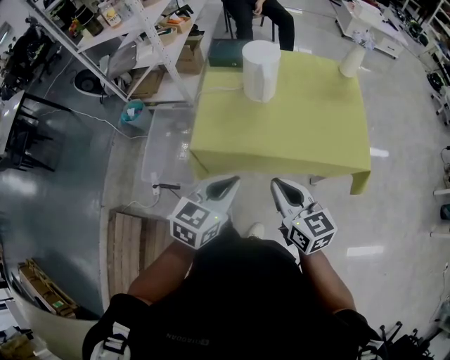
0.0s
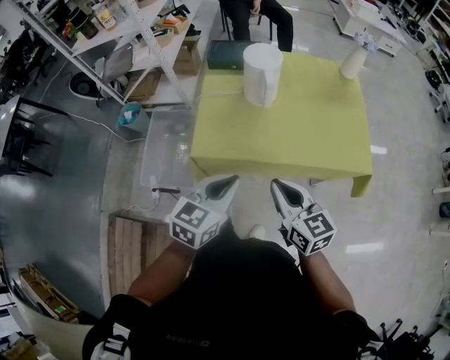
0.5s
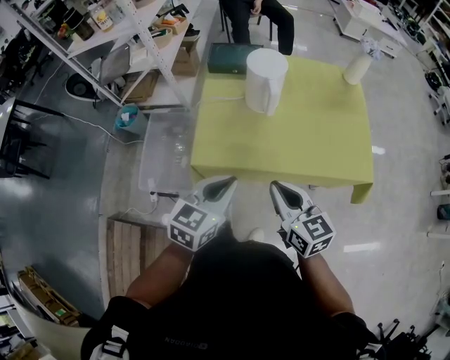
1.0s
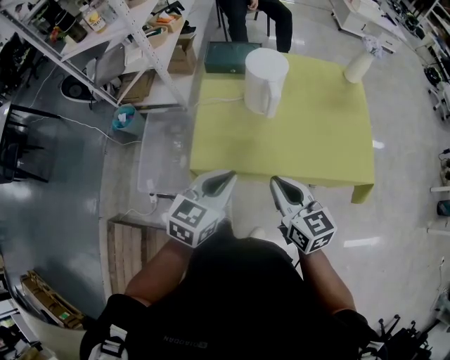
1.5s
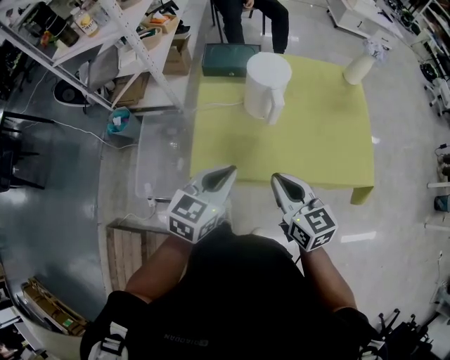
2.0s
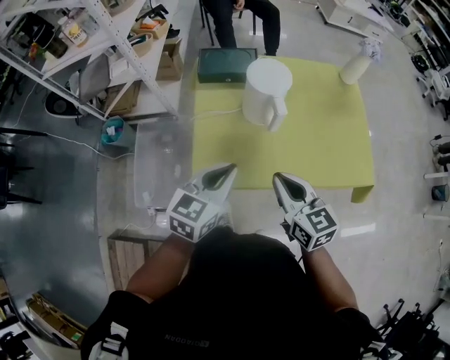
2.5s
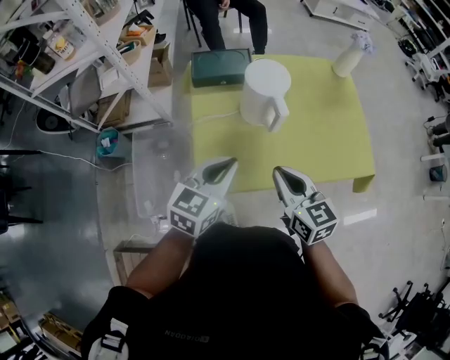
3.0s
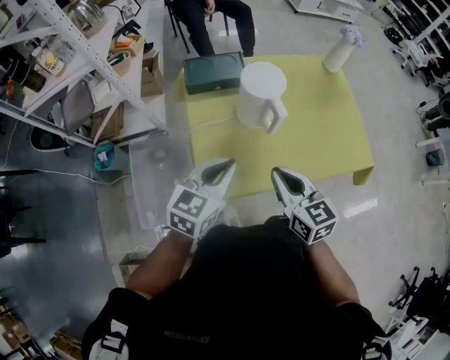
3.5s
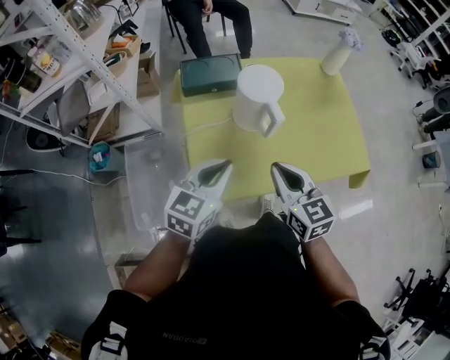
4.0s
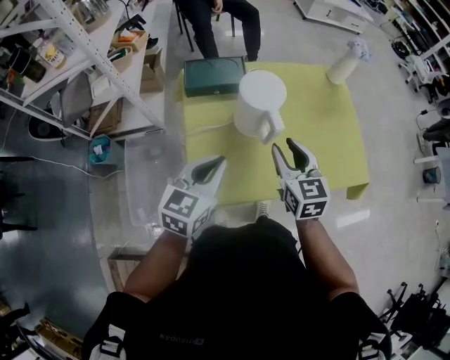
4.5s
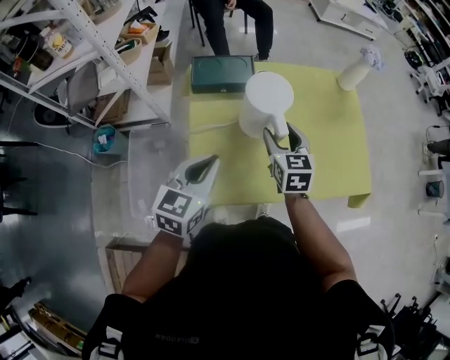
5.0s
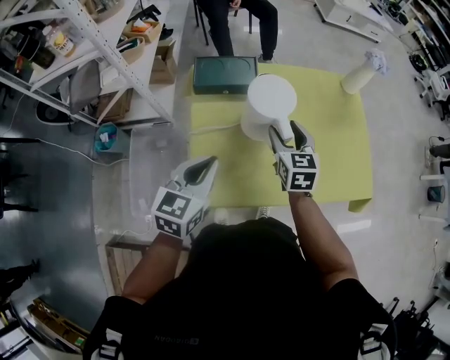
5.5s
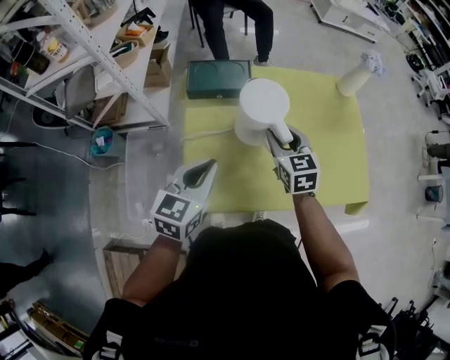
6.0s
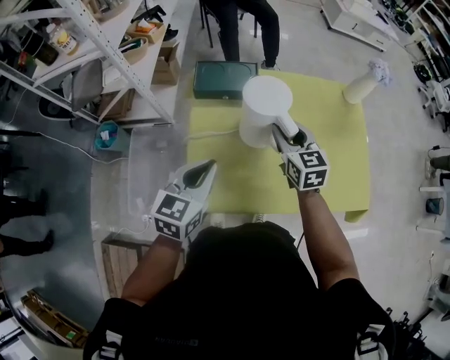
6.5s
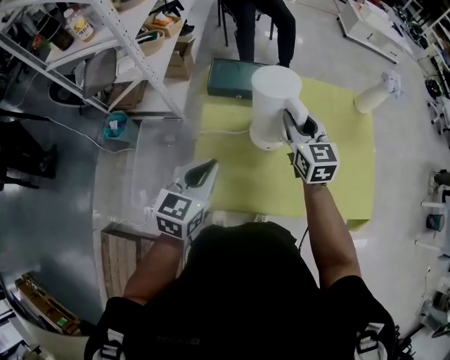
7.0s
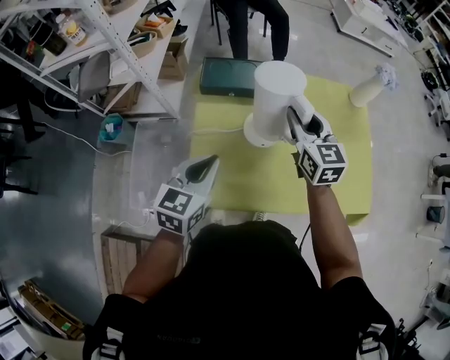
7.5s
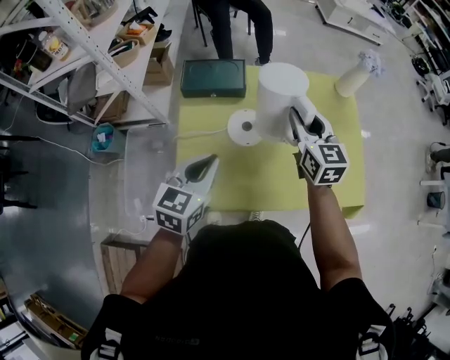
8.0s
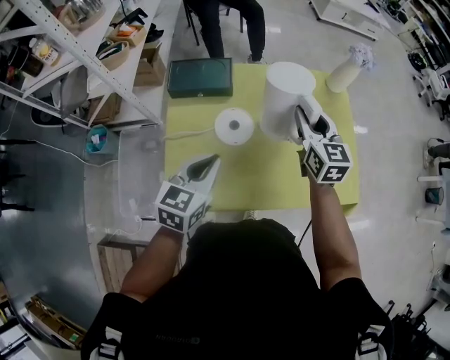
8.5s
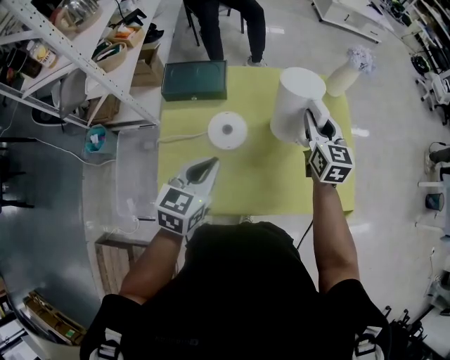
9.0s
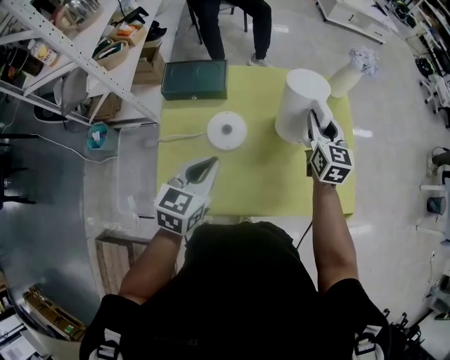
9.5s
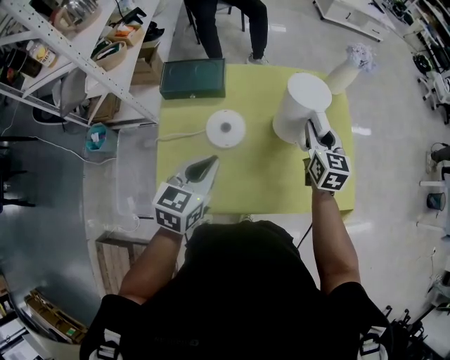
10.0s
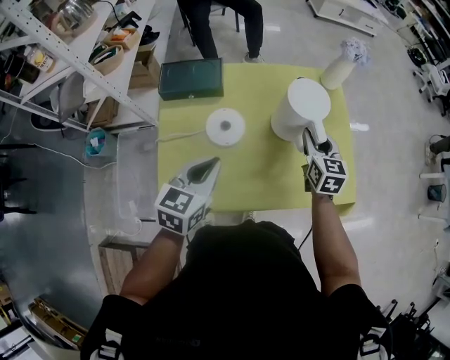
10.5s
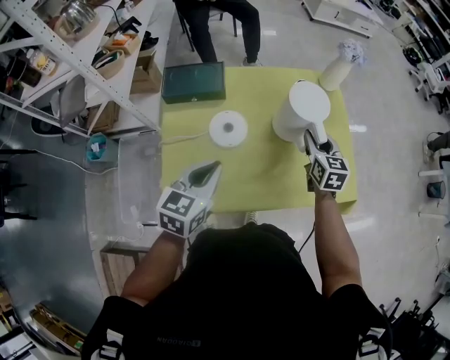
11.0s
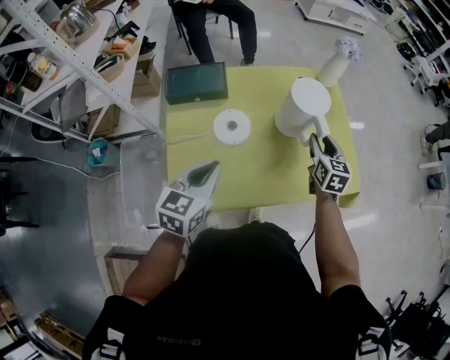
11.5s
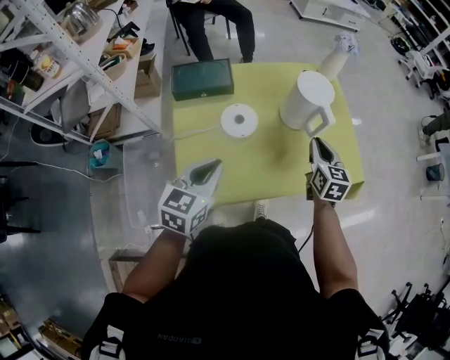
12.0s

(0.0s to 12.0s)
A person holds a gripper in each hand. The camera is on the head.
0.0s - 2.0s: Both grippers travel together forward, some 15 cm.
2.0s - 4.0s: The two grippers go roughly 10 cm forward and to the left.
4.0s - 6.0s: The left gripper shifts roughly 5 cm forward; the right gripper heads forward, covering some 20 cm, and opens up.
6.0s - 8.0s: The right gripper is displaced to the right and upward by roughly 10 cm.
8.0s - 10.0s: The right gripper moves to the right and downward, approximately 15 cm. The left gripper moves to the right, roughly 10 cm.
10.0s - 12.0s: The right gripper shifts approximately 15 cm backward, and closes up. Meanwhile the left gripper goes approximately 10 cm backward.

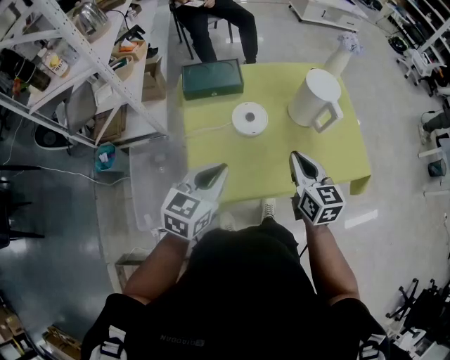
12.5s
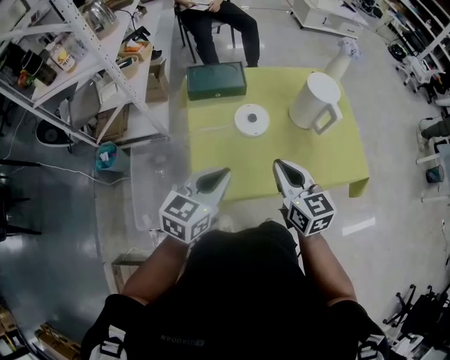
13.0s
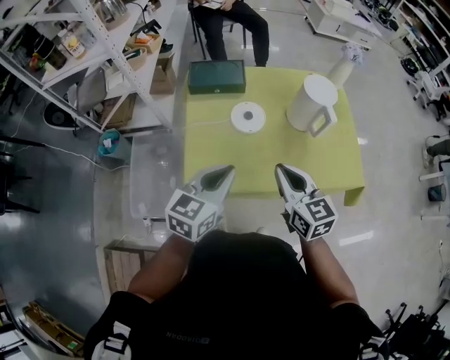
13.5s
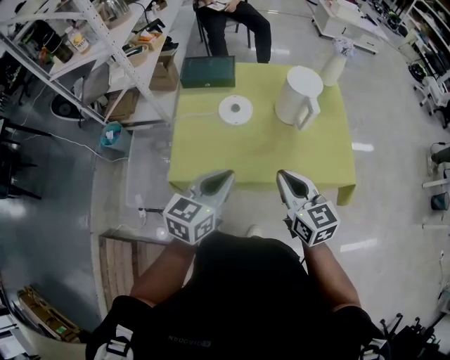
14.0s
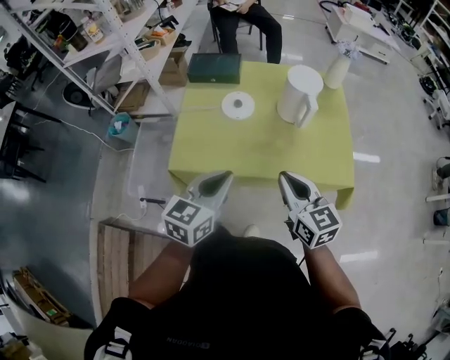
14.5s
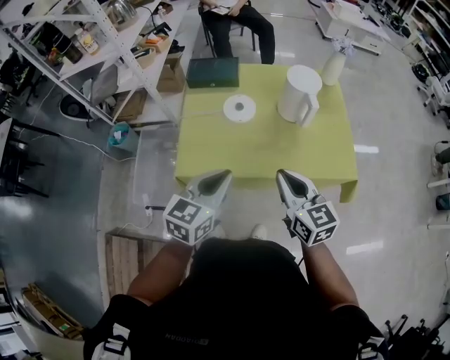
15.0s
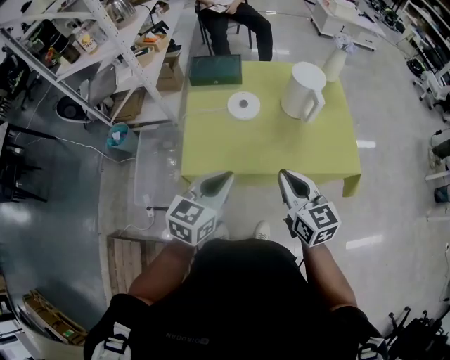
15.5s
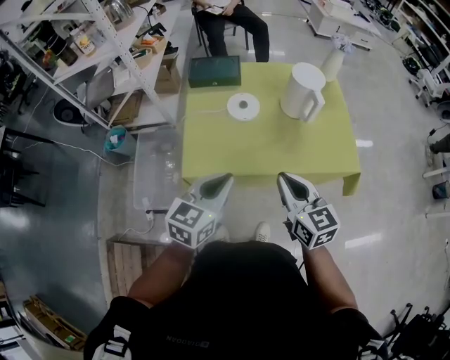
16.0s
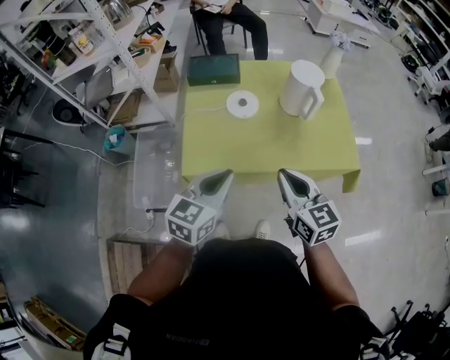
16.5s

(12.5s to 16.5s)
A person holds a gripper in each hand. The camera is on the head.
12.5s - 14.5s: The right gripper is displaced backward and to the right by some 15 cm, and rotates roughly 20 degrees. The left gripper moves to the right and backward, some 20 cm.
14.5s - 16.5s: Both grippers travel together to the left, approximately 10 cm.

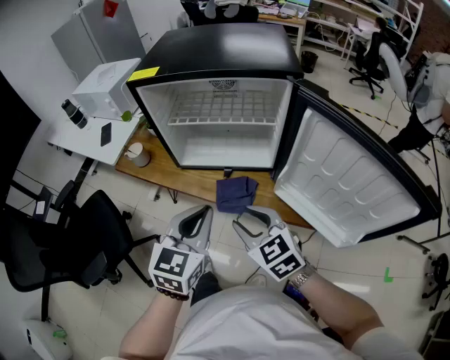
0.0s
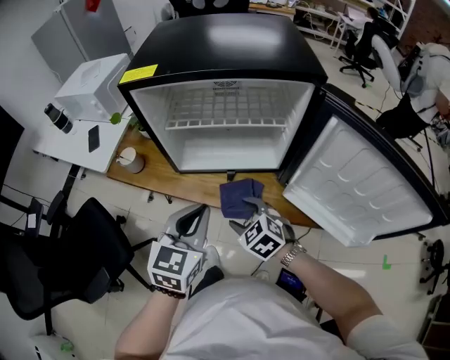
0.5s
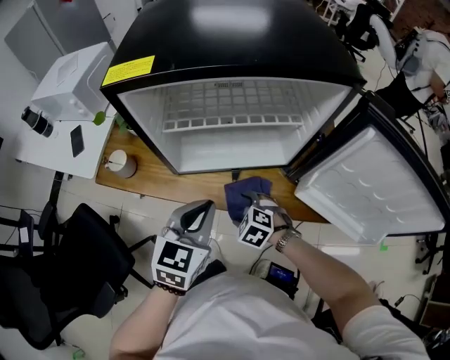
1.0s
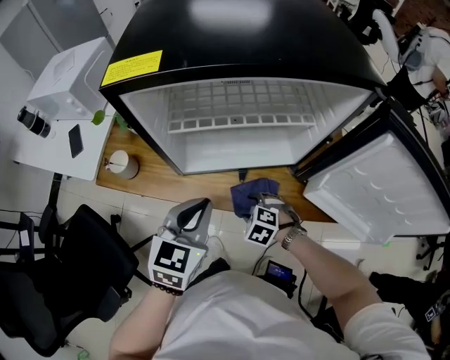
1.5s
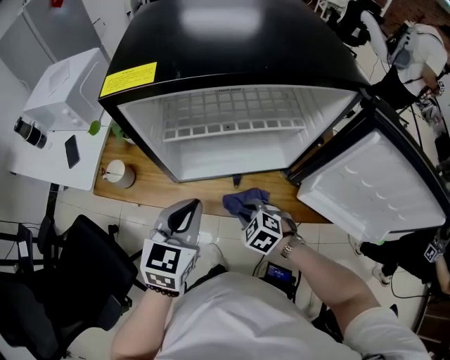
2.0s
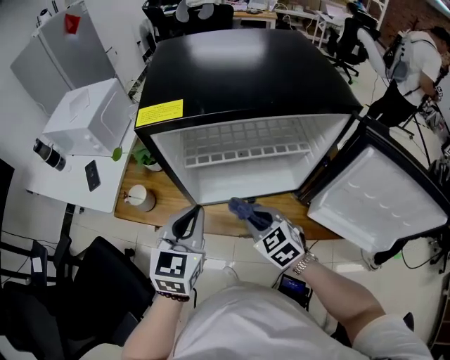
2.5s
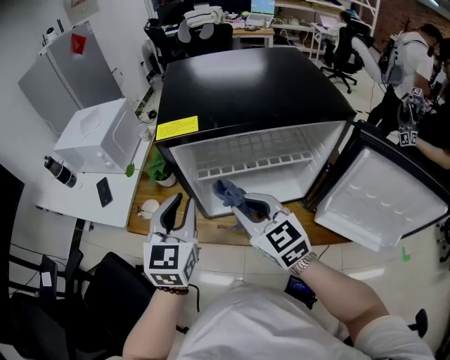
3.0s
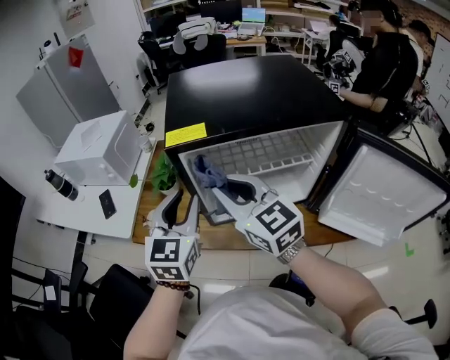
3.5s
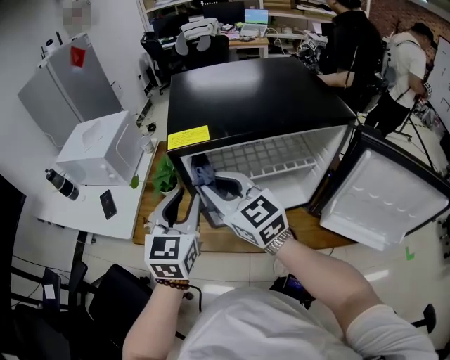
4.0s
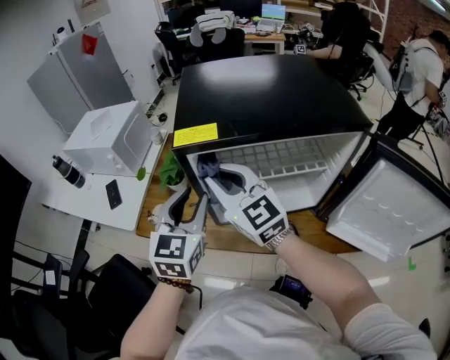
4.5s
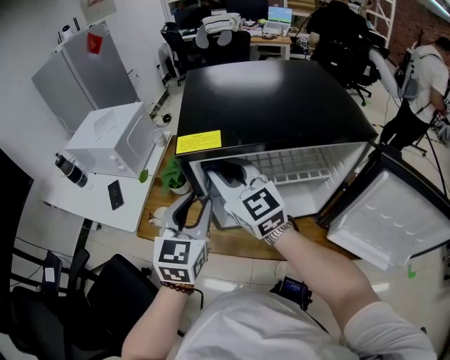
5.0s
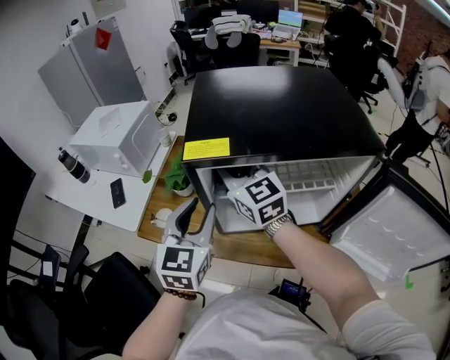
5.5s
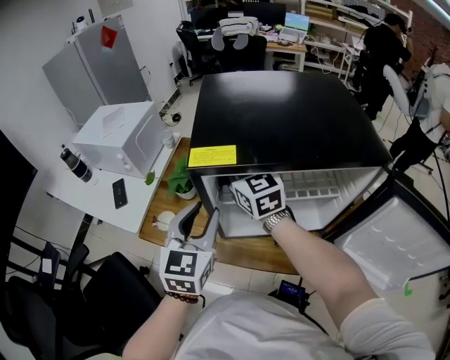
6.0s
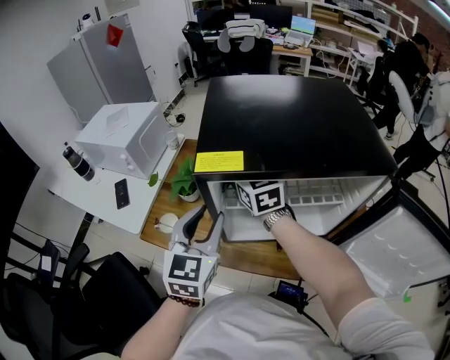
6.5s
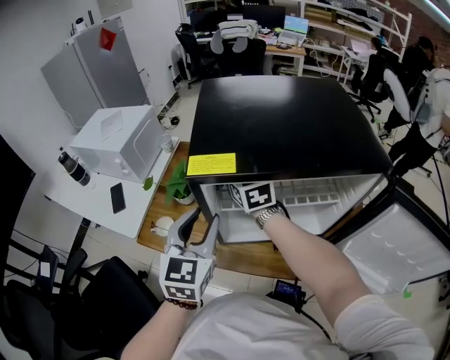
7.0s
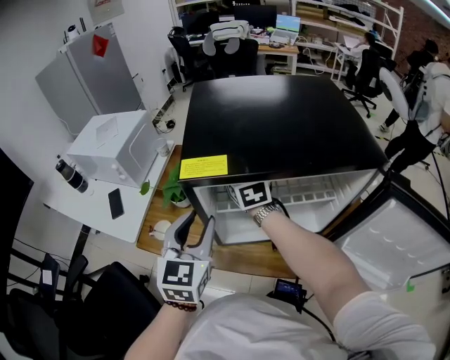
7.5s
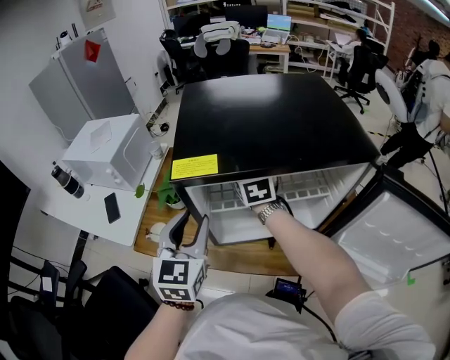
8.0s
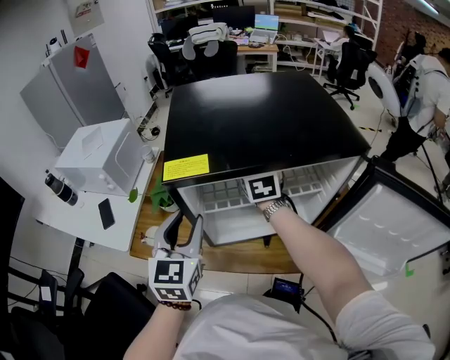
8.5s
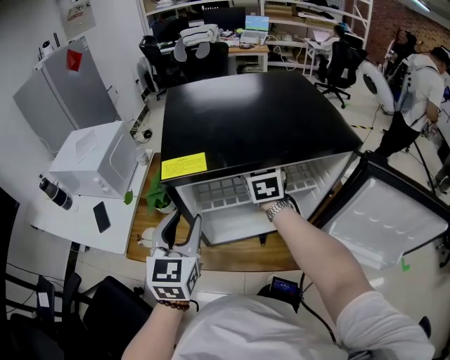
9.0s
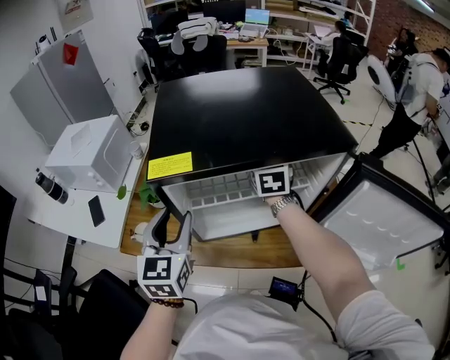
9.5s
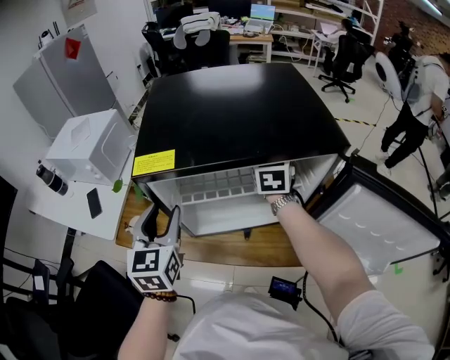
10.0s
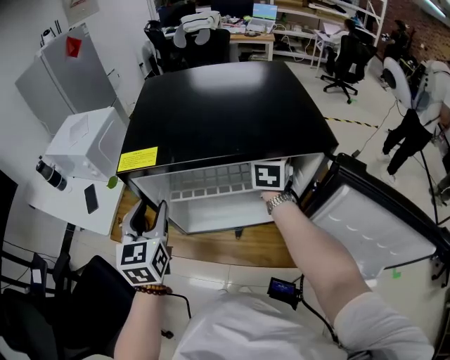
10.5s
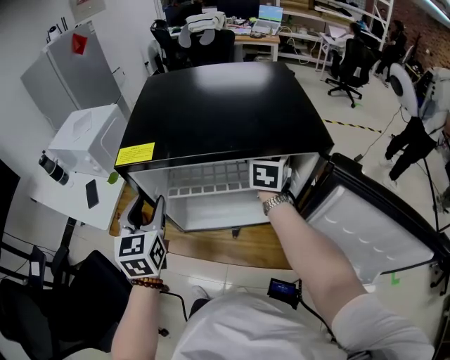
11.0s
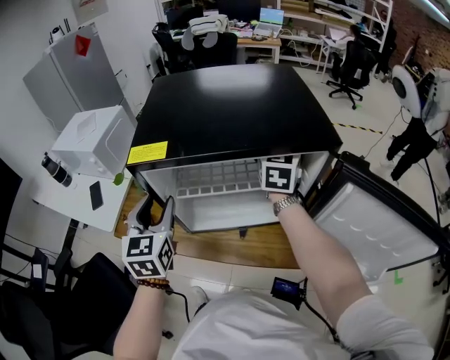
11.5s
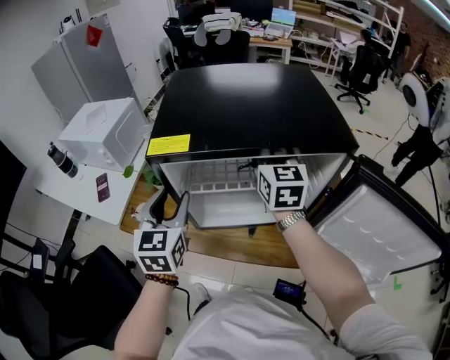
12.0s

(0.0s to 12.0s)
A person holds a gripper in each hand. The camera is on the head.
0.0s - 2.0s: The left gripper is displaced forward, to the left and downward by approximately 20 cm. The right gripper heads downward and forward, covering about 25 cm, changes its angle by roughly 30 degrees, and opens, then closes once more.
2.0s - 4.0s: The right gripper goes about 35 cm upward and to the left, and points its fingers roughly 60 degrees further upward; the left gripper moves upward, forward and to the left, about 20 cm, and opens up.
4.0s - 6.0s: The right gripper travels forward by roughly 15 cm.
6.0s - 8.0s: The right gripper is displaced to the right and forward by some 10 cm.
8.0s - 10.0s: The right gripper heads to the right, covering approximately 15 cm.
10.0s - 12.0s: The right gripper heads backward, covering some 5 cm.
